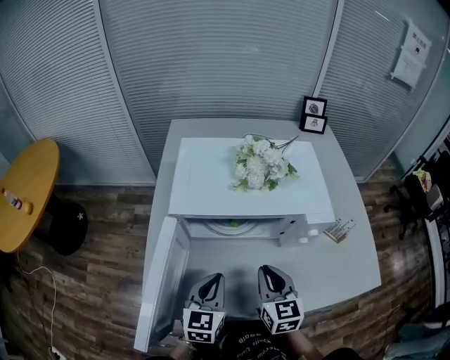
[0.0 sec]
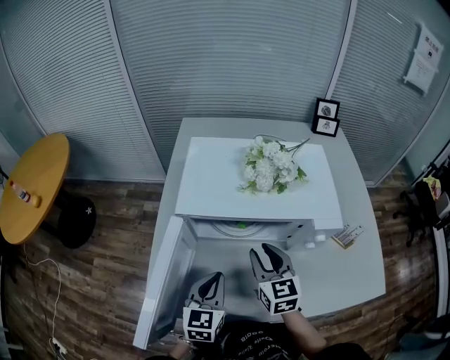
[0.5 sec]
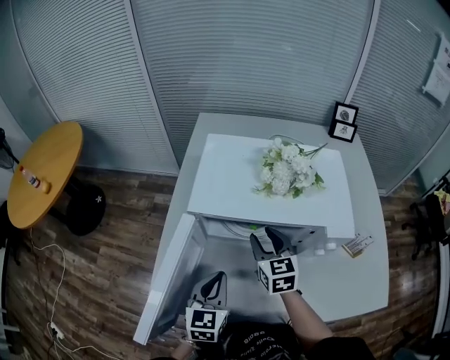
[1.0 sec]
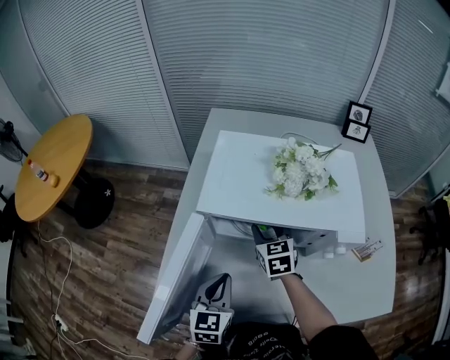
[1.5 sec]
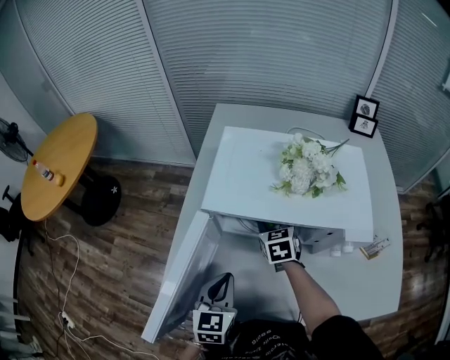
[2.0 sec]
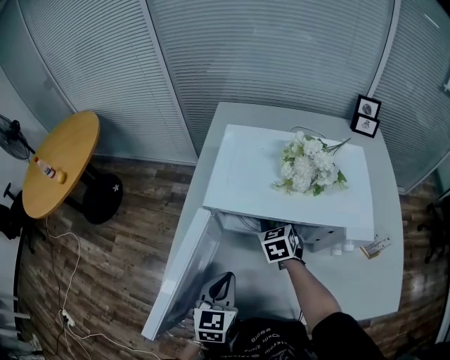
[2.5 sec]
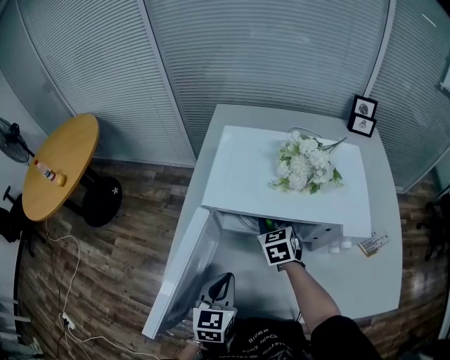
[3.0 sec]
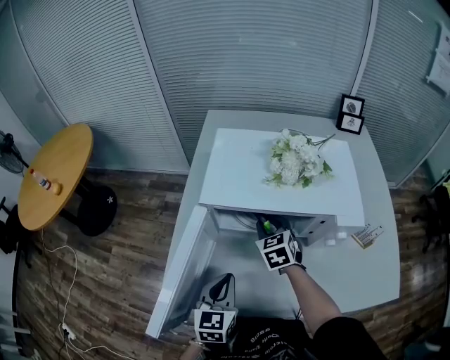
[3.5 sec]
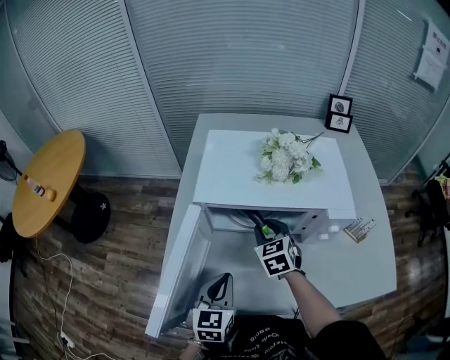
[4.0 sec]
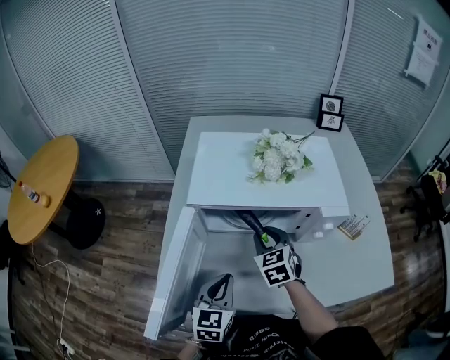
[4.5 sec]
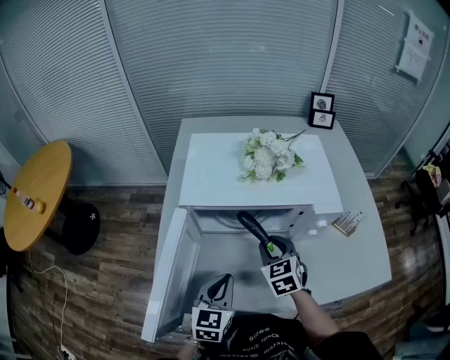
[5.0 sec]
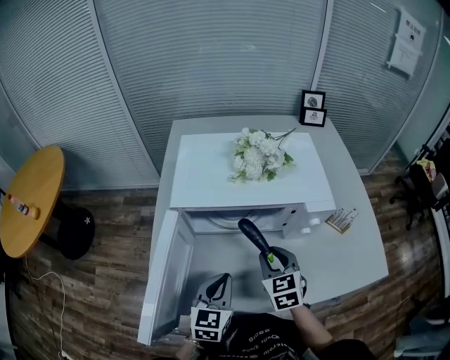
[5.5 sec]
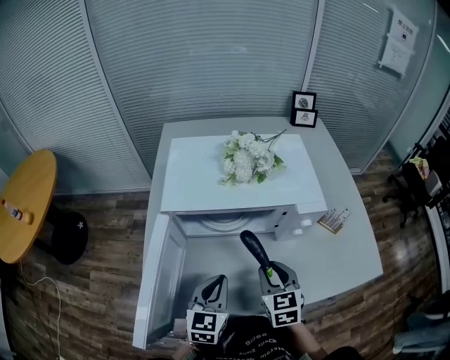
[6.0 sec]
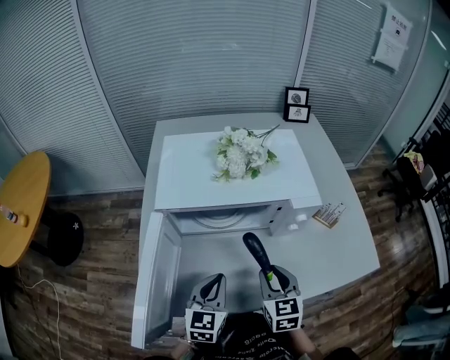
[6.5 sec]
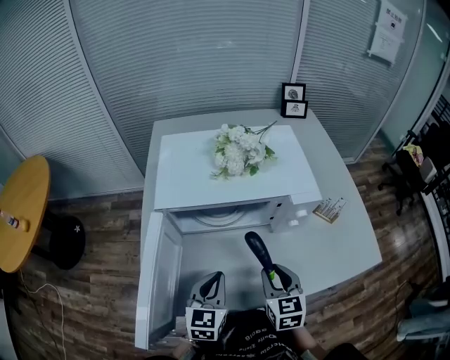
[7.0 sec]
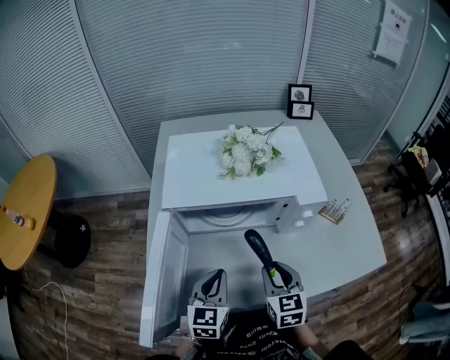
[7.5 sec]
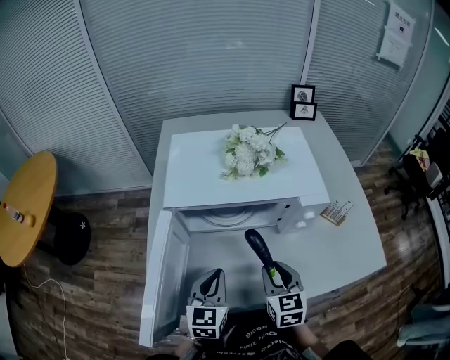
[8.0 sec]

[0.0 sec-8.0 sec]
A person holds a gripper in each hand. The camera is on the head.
0.0 sec to 2.0 sec: The right gripper goes roughly 20 cm forward, turns by some 20 degrees, and opens its fingers.
2.0 sec to 4.0 sec: The right gripper moves backward, some 5 cm.
4.0 sec to 6.0 sec: The left gripper is displaced to the right by some 5 cm; the right gripper shifts some 15 cm backward and to the right.
6.0 sec to 8.0 sec: The grippers stay close to where they were, moving slightly.

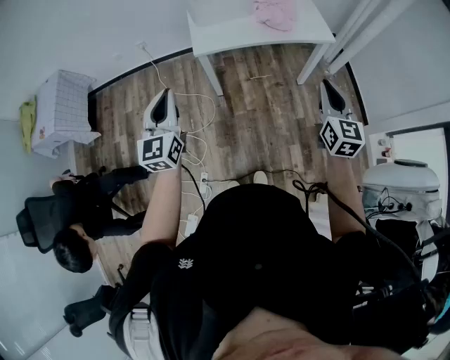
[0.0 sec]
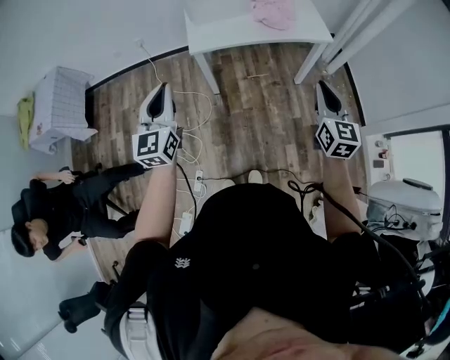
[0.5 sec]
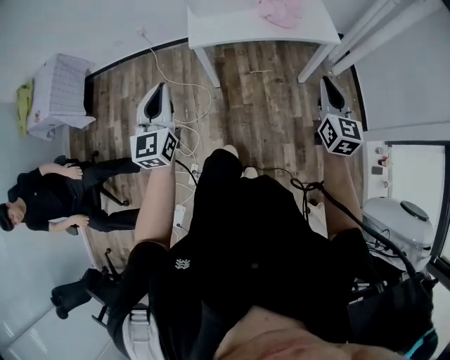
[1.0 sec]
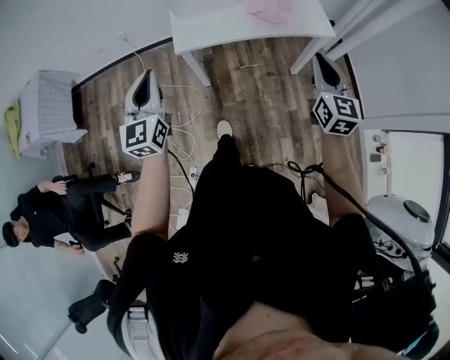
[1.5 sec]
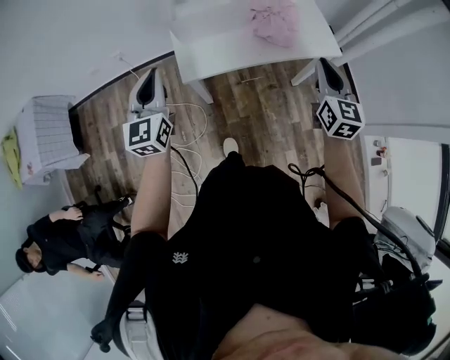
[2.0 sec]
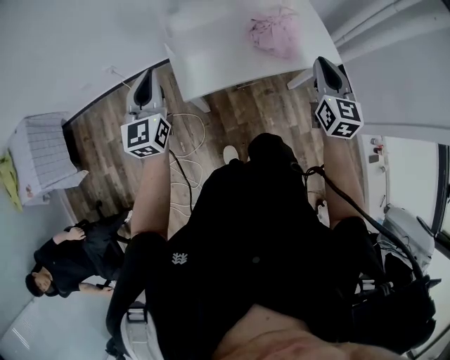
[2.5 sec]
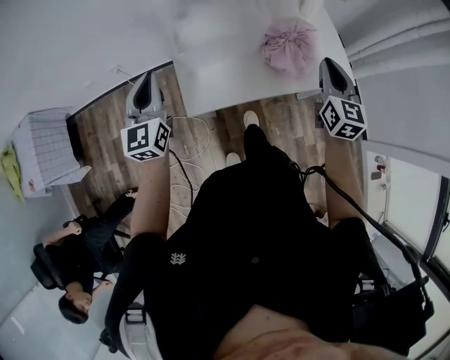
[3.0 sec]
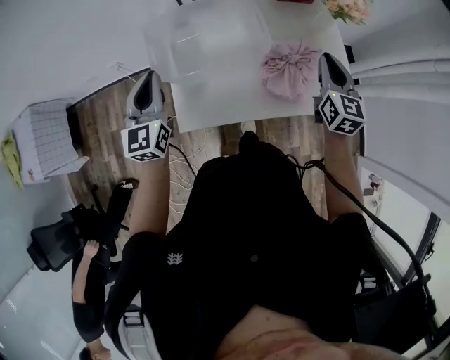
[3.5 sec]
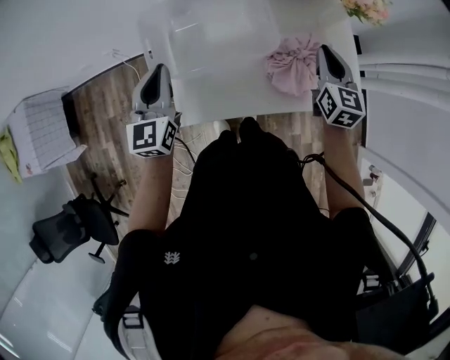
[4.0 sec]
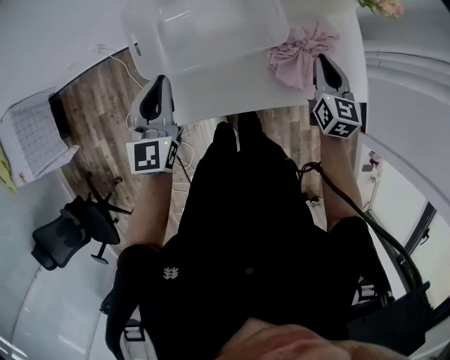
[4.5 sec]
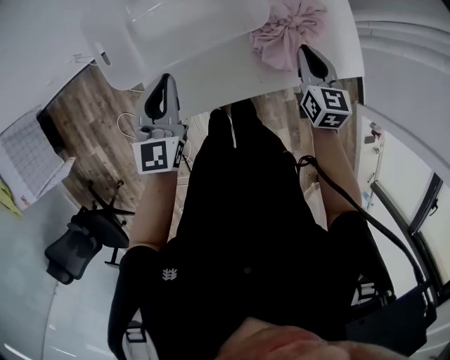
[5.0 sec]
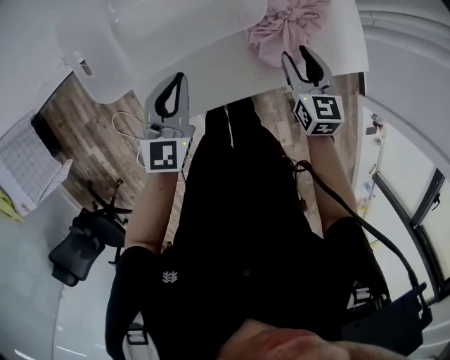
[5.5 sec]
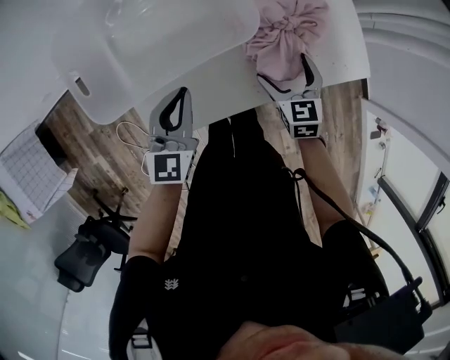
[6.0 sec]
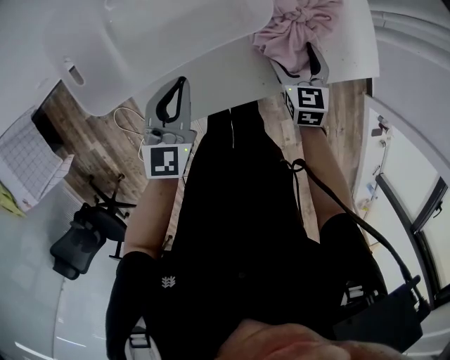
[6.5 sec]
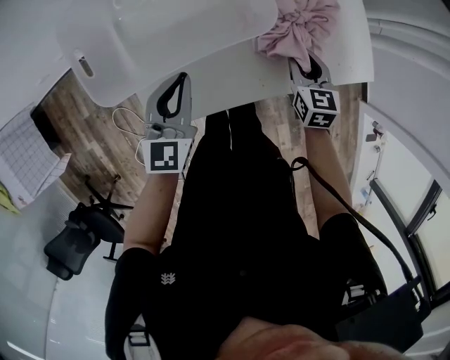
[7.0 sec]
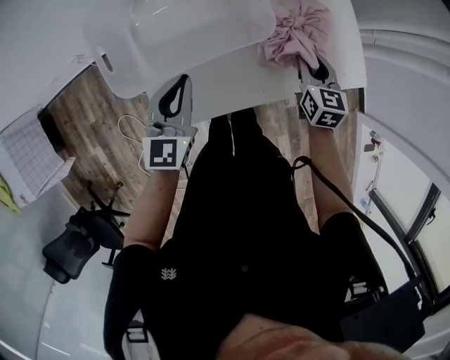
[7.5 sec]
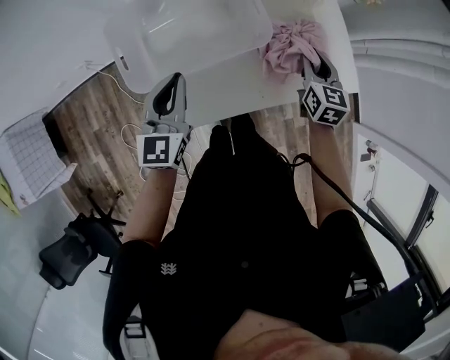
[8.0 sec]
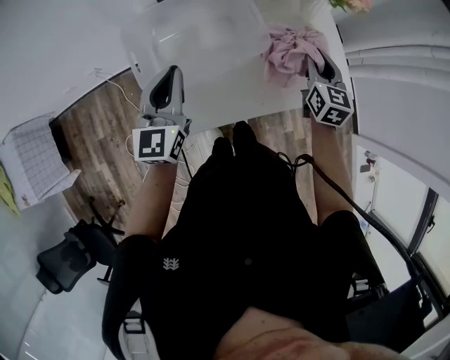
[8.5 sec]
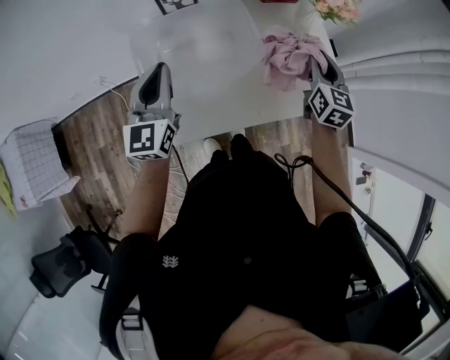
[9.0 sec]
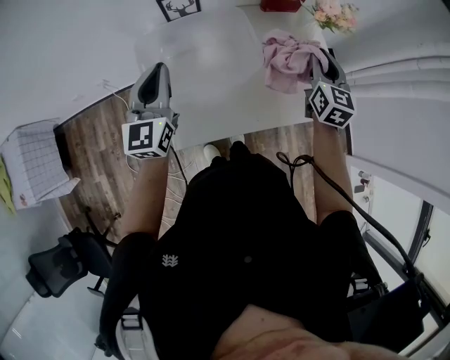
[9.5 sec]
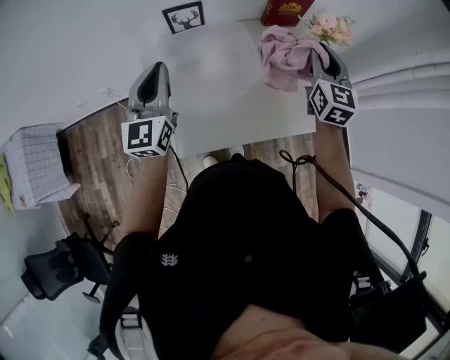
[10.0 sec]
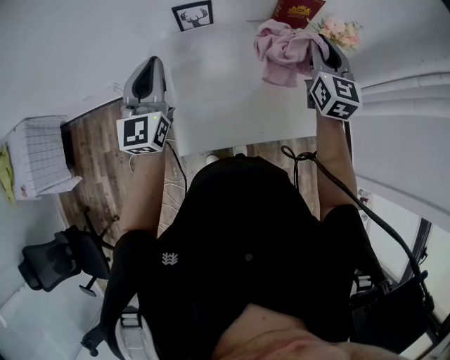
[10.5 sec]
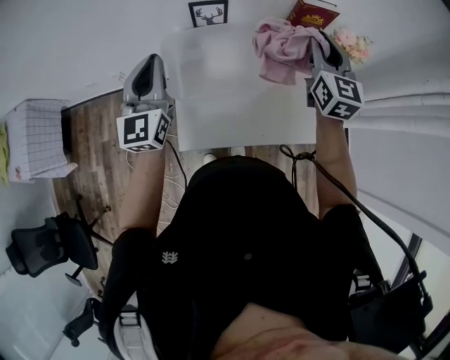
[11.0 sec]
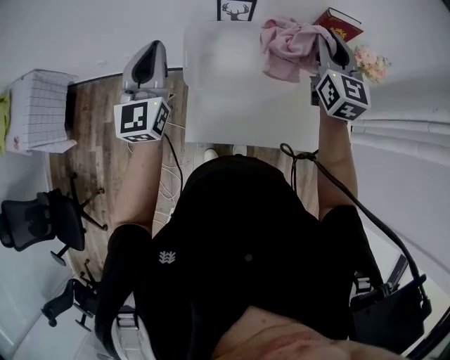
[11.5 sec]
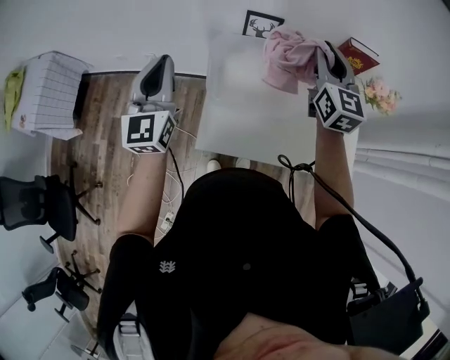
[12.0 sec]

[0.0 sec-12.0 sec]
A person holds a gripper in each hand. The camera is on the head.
0.0 sec to 2.0 sec: The grippers both shift forward by about 30 cm.
2.0 sec to 4.0 sec: Both grippers move forward, approximately 35 cm.
4.0 sec to 6.0 sec: The left gripper travels downward and to the right by roughly 20 cm, and turns by about 20 degrees, while the right gripper travels downward by roughly 25 cm, rotates about 20 degrees, and opens its fingers.
6.0 sec to 8.0 sec: The left gripper heads upward and to the left, covering roughly 10 cm, while the right gripper moves upward and forward, about 15 cm, and closes its fingers.
8.0 sec to 10.0 sec: The grippers both shift upward by approximately 20 cm. The right gripper rotates about 20 degrees.
10.0 sec to 12.0 sec: Both grippers travel together to the left, approximately 20 cm. The right gripper turns by about 20 degrees. Meanwhile the left gripper rotates about 20 degrees.

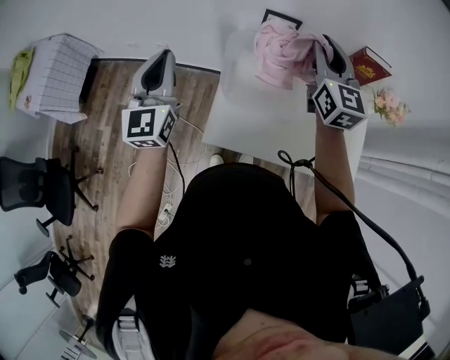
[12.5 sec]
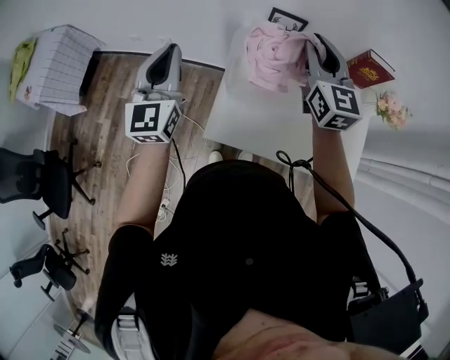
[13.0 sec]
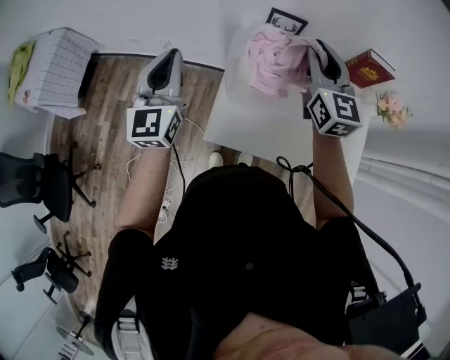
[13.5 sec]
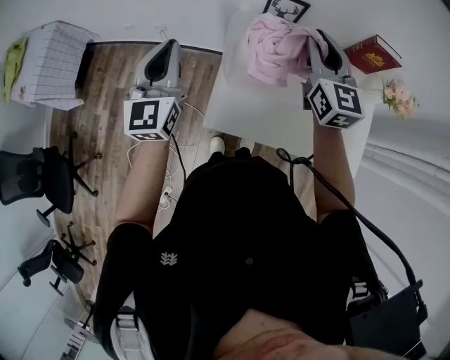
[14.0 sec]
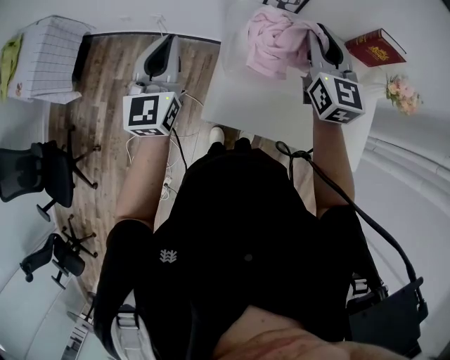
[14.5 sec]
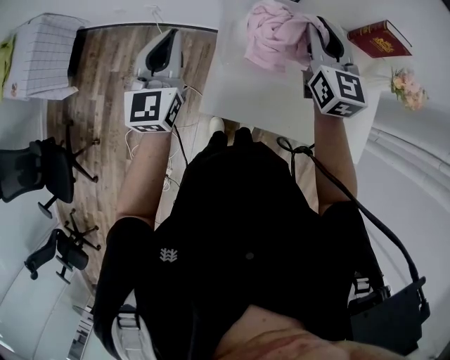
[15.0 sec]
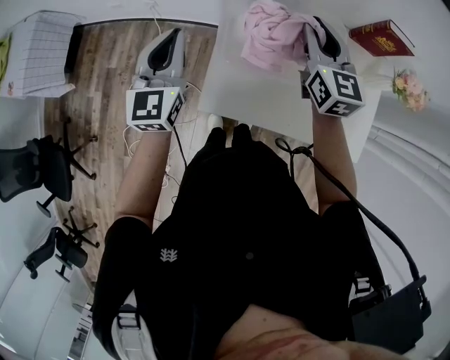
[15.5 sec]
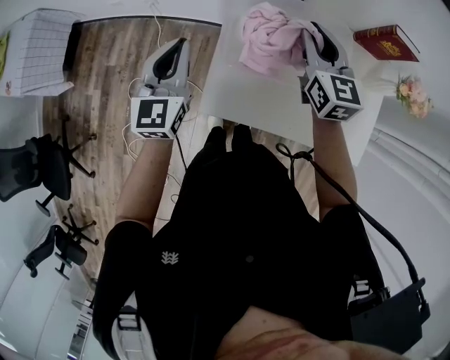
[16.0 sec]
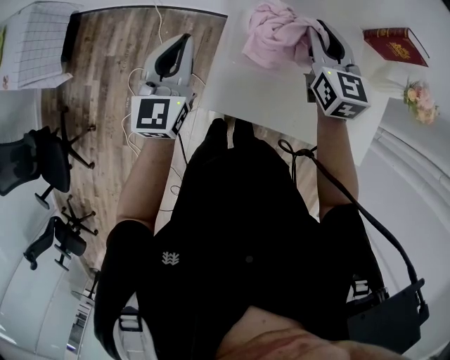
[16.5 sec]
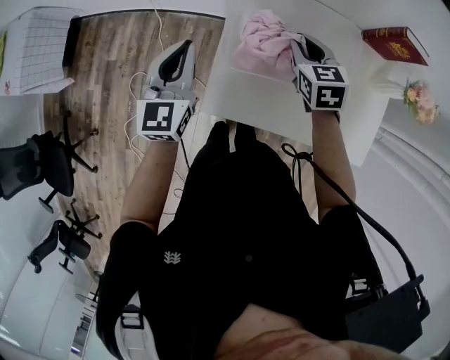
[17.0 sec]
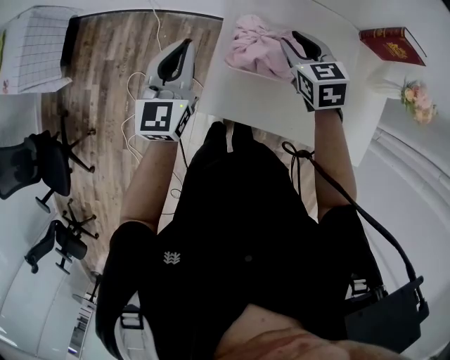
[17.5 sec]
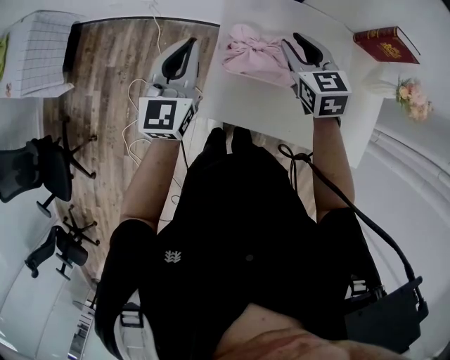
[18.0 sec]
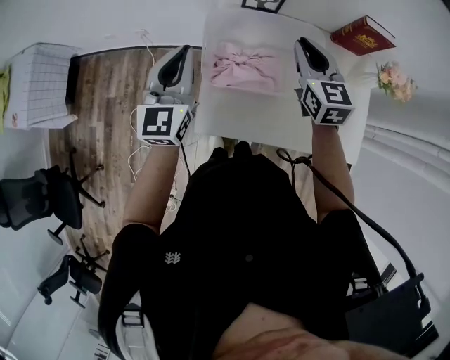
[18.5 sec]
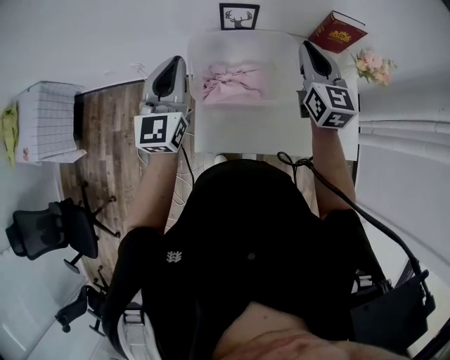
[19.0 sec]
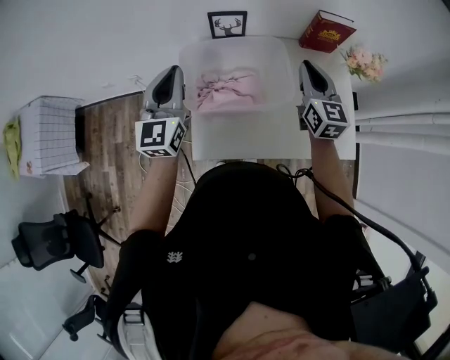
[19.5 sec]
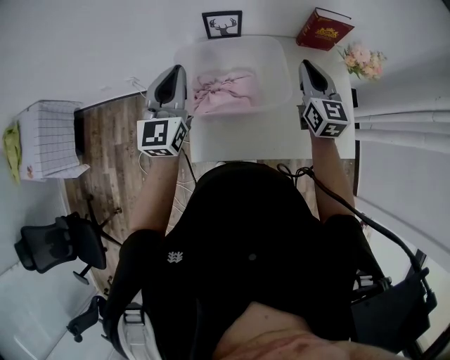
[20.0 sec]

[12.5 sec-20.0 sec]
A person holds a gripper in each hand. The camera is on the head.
12.5 sec to 14.5 sec: The right gripper is displaced downward by about 5 cm.
14.5 sec to 16.5 sec: Both grippers travel together downward, about 10 cm.
18.0 sec to 20.0 sec: The left gripper travels to the right and upward by some 15 cm; the right gripper goes roughly 25 cm to the right and upward, and turns by roughly 40 degrees.
